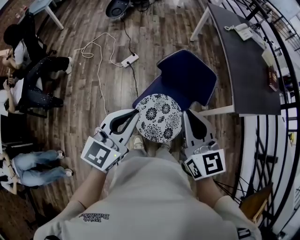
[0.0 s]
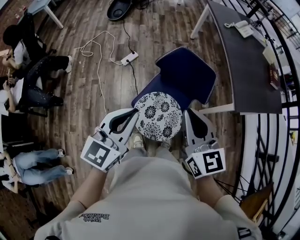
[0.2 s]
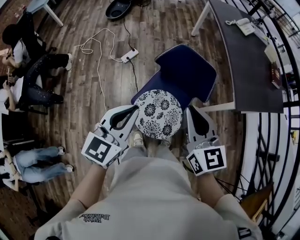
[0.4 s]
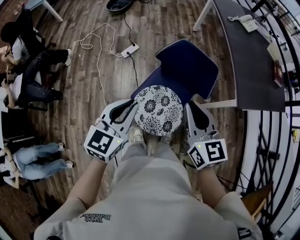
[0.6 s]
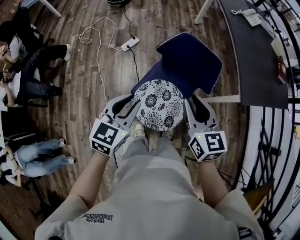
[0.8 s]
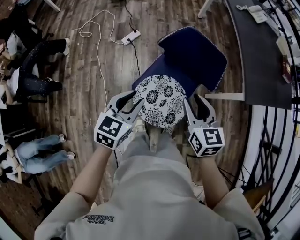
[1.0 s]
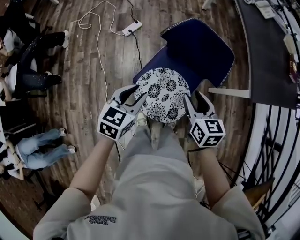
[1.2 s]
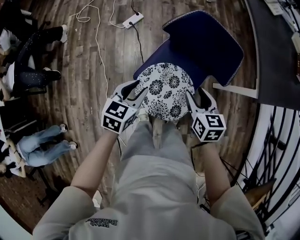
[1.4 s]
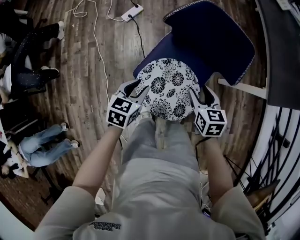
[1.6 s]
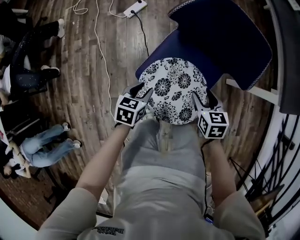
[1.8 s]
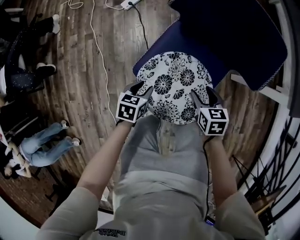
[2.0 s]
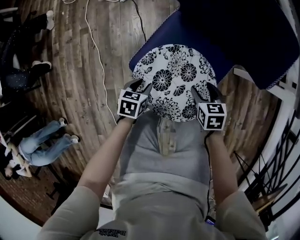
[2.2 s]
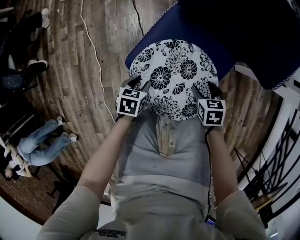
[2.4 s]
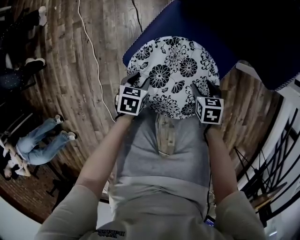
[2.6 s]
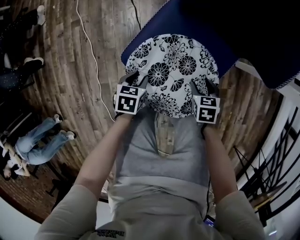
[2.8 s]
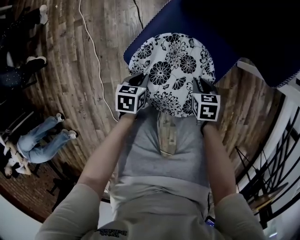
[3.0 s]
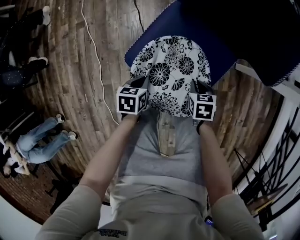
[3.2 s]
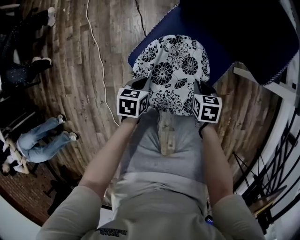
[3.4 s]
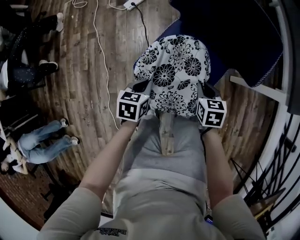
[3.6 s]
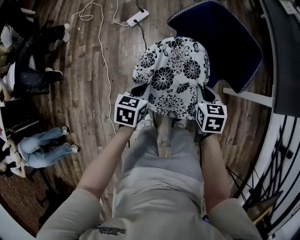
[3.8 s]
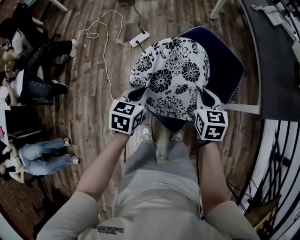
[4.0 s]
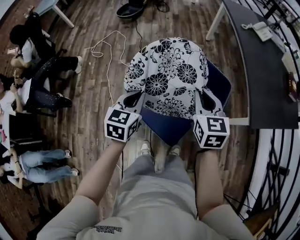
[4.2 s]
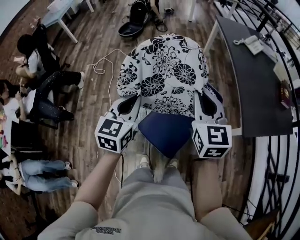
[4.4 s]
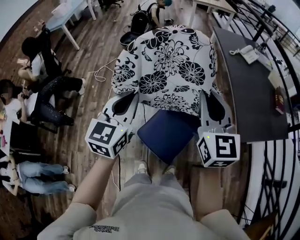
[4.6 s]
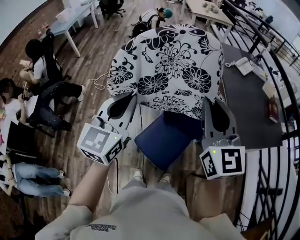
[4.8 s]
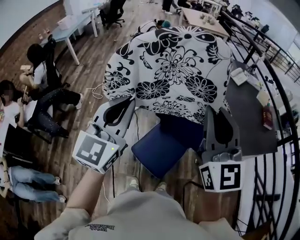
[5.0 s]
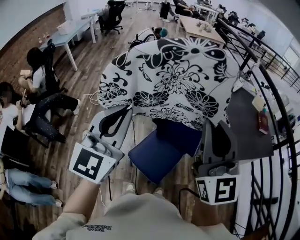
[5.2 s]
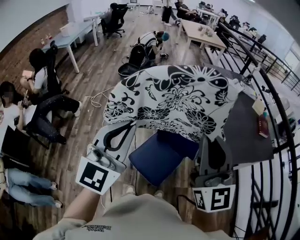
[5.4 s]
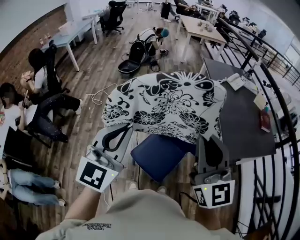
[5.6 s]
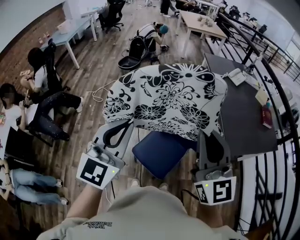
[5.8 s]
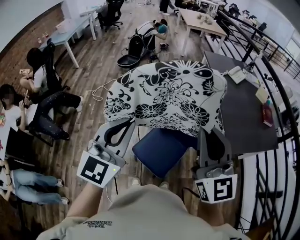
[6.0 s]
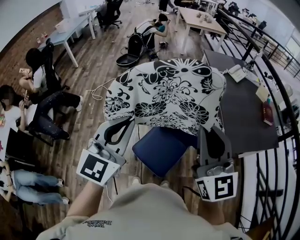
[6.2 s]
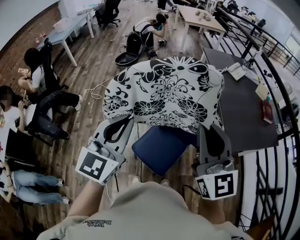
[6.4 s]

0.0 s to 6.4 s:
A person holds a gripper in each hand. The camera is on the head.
0.0 to 1.6 s: Both grippers travel together downward, some 40 cm. The left gripper tilts its fingers roughly 40 degrees downward, and opens its fingers, while the right gripper angles its fingers downward, by approximately 30 degrees, and opens up.
1.6 to 3.2 s: The grippers both shift downward by about 30 cm. The left gripper swivels approximately 20 degrees, and closes, while the right gripper swivels about 20 degrees, and closes its fingers.
3.2 to 4.8 s: Both grippers travel together upward, about 50 cm. The left gripper turns by approximately 30 degrees. The right gripper angles its fingers upward, by roughly 40 degrees.
4.8 to 6.4 s: The grippers stay close to where they were, moving slightly.

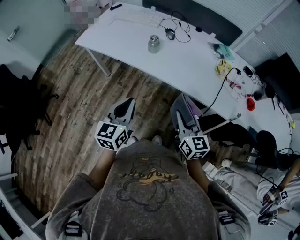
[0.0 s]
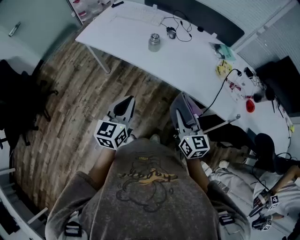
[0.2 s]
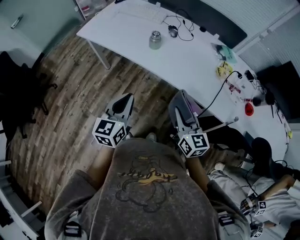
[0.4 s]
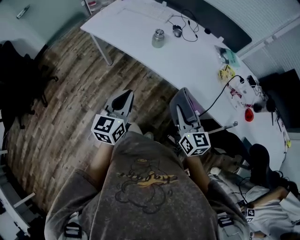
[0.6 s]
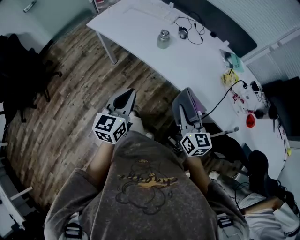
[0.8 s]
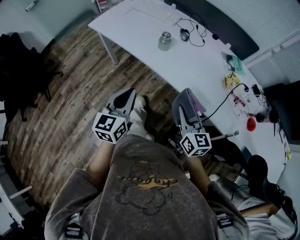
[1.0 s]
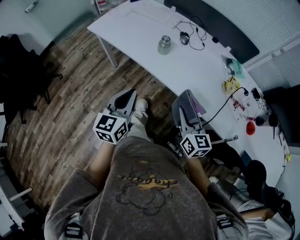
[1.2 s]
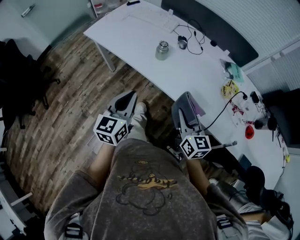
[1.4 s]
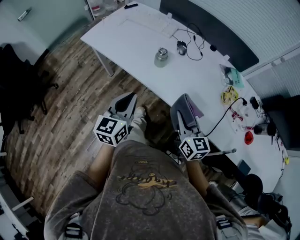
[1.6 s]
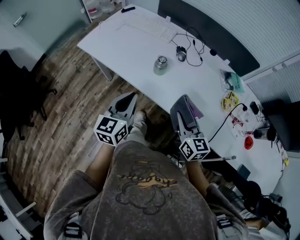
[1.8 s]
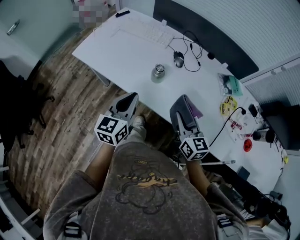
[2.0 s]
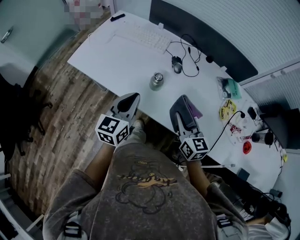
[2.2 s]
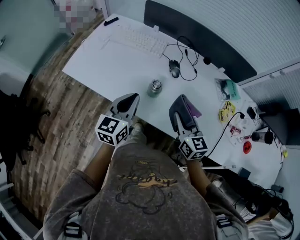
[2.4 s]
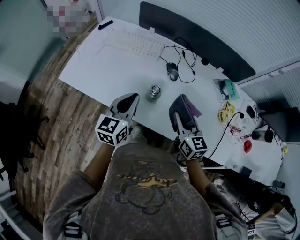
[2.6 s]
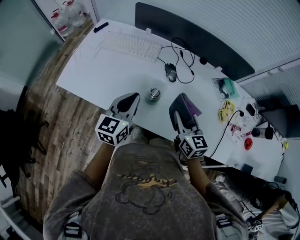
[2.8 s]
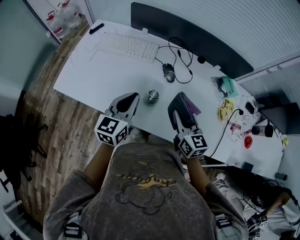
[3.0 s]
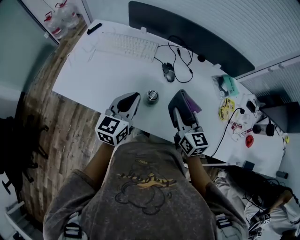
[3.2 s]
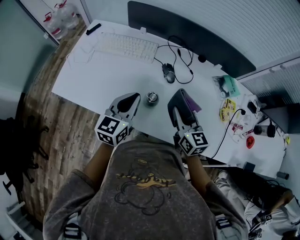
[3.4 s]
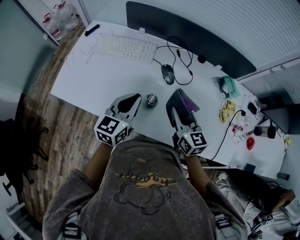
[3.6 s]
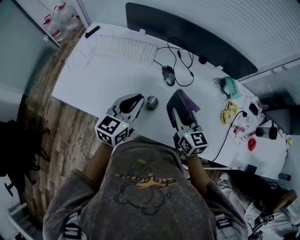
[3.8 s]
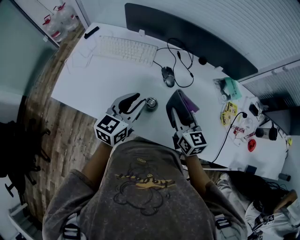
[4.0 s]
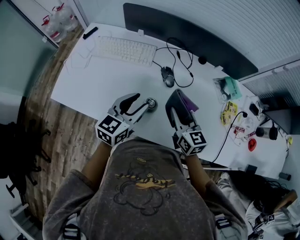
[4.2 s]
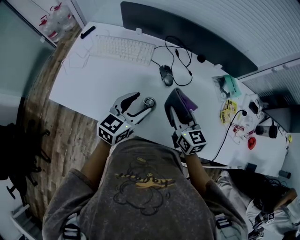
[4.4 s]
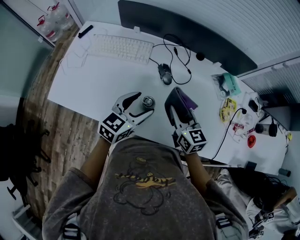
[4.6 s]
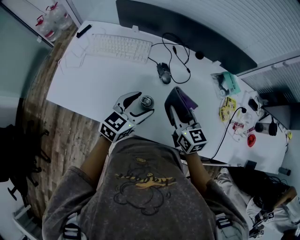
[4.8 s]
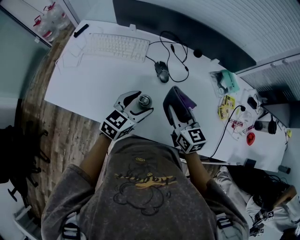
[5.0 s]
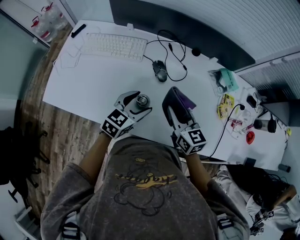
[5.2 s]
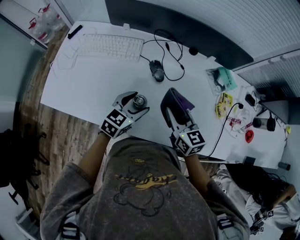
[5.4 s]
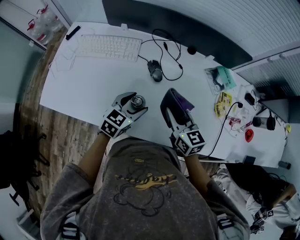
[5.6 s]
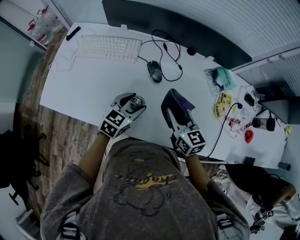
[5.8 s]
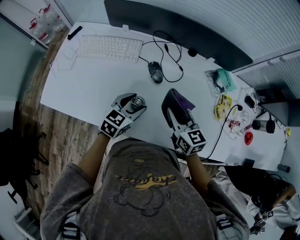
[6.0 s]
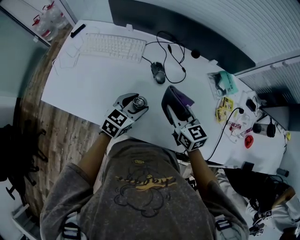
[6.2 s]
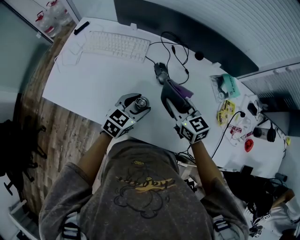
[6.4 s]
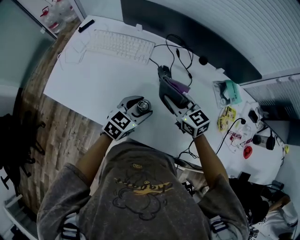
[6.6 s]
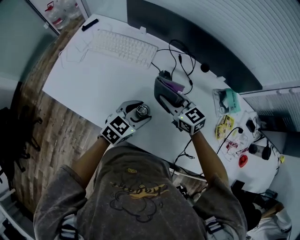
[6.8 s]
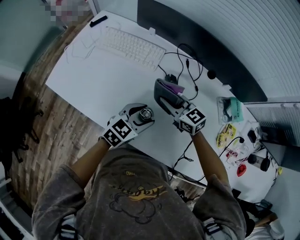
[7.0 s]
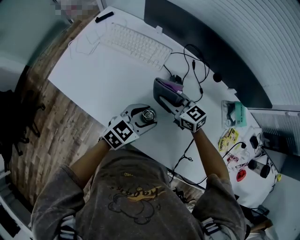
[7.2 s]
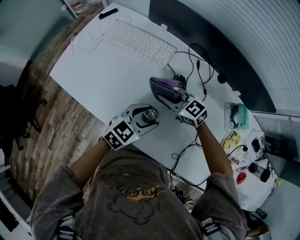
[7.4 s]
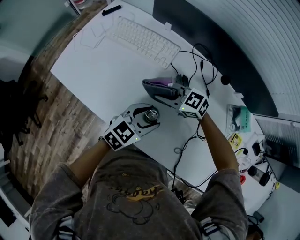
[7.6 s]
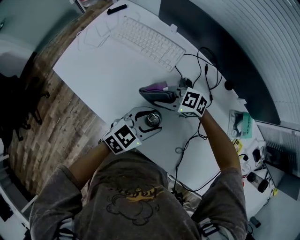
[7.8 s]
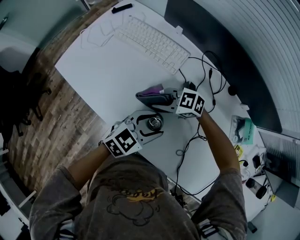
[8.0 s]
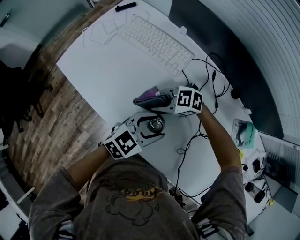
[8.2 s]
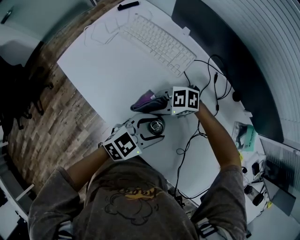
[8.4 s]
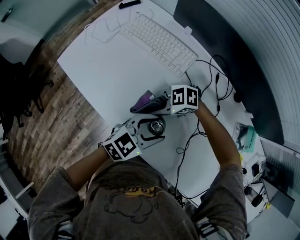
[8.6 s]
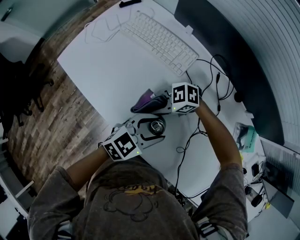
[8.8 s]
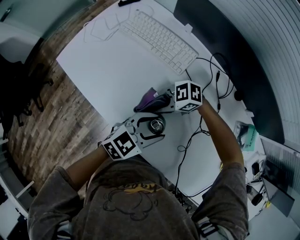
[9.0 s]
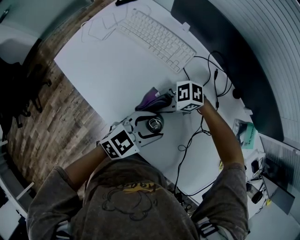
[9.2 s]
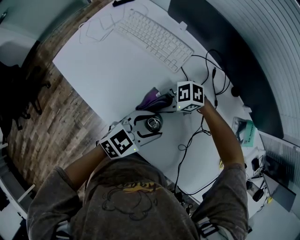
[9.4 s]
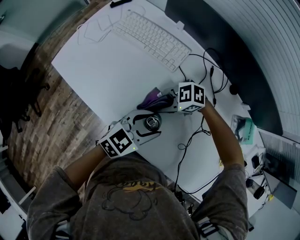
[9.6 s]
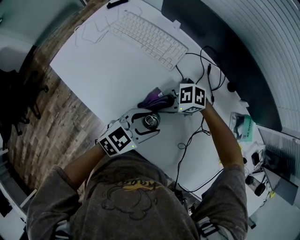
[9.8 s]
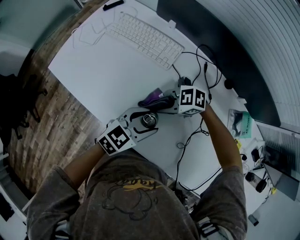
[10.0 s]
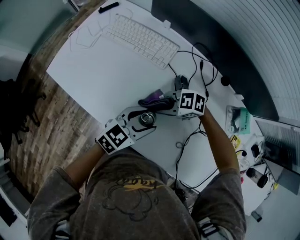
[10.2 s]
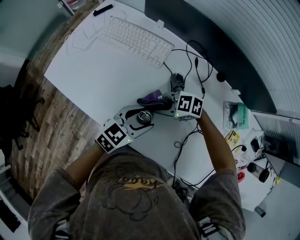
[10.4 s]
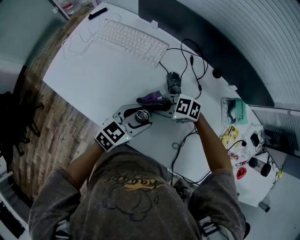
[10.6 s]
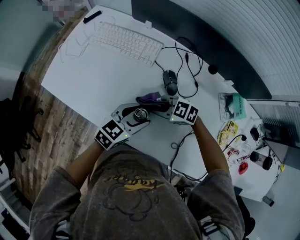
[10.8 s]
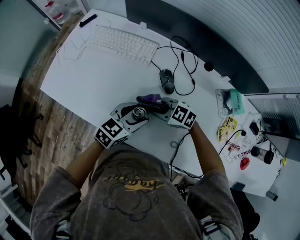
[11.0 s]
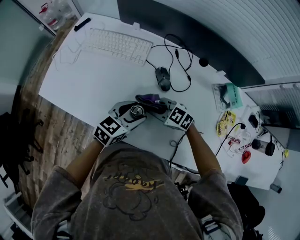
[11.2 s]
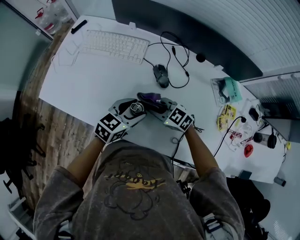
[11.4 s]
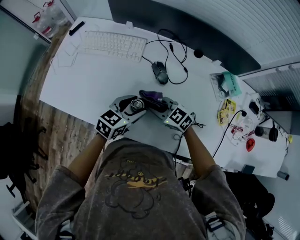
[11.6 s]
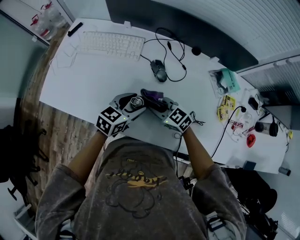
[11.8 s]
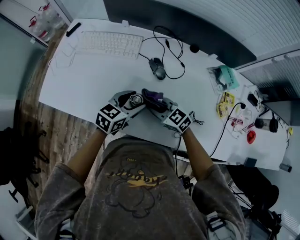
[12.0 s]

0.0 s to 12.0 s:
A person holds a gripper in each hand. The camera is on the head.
0.0 to 1.6 s: Both grippers move forward, some 15 cm.
1.6 to 3.0 s: The two grippers go roughly 25 cm forward.
3.0 to 4.4 s: The right gripper goes approximately 5 cm forward; the left gripper is displaced to the right by roughly 5 cm, and opens.
4.4 to 6.0 s: The left gripper travels downward by approximately 10 cm.
6.0 to 7.6 s: The right gripper moves about 20 cm, and rotates some 70 degrees.
7.6 to 9.0 s: The right gripper moves roughly 10 cm, and turns by about 40 degrees.
9.0 to 10.4 s: The right gripper changes place by approximately 5 cm, and swivels about 20 degrees.
10.4 to 12.0 s: The right gripper moves approximately 5 cm, and turns by approximately 50 degrees.

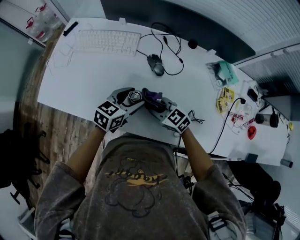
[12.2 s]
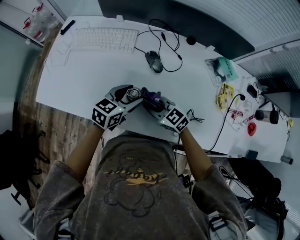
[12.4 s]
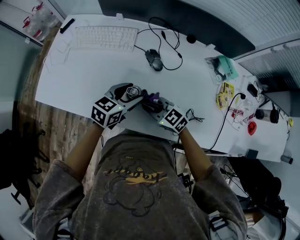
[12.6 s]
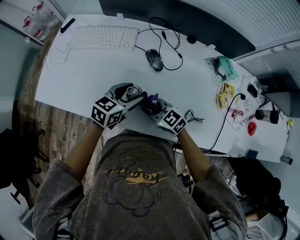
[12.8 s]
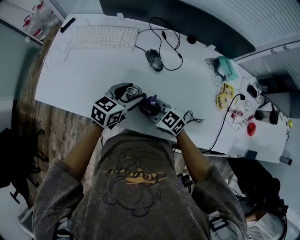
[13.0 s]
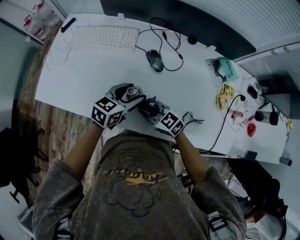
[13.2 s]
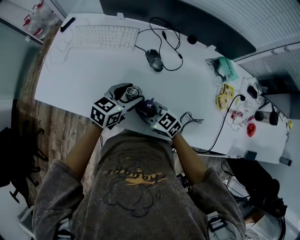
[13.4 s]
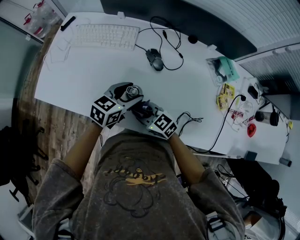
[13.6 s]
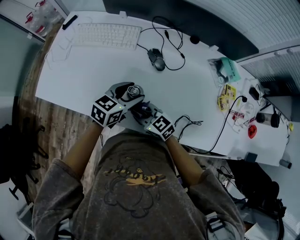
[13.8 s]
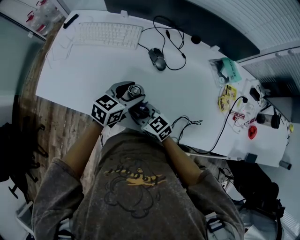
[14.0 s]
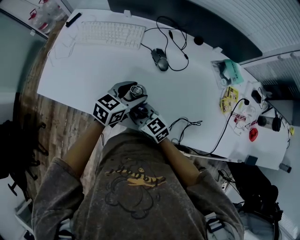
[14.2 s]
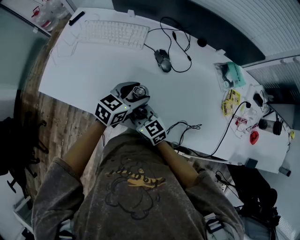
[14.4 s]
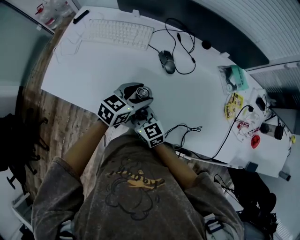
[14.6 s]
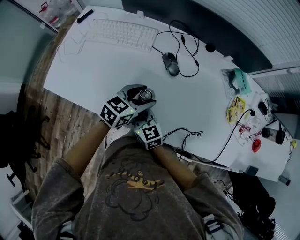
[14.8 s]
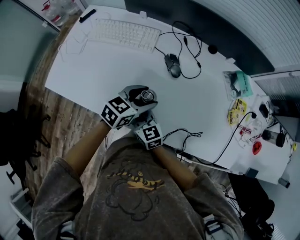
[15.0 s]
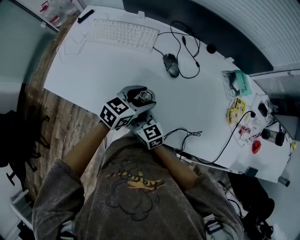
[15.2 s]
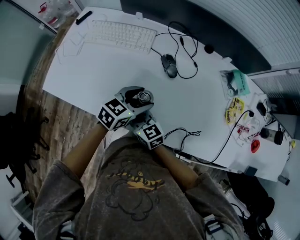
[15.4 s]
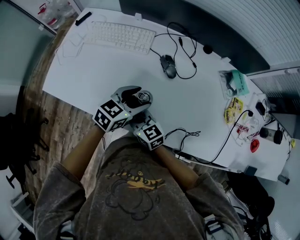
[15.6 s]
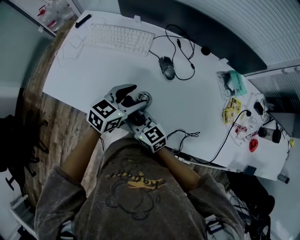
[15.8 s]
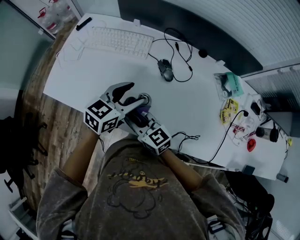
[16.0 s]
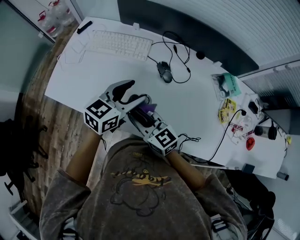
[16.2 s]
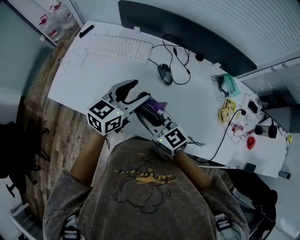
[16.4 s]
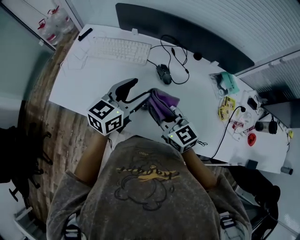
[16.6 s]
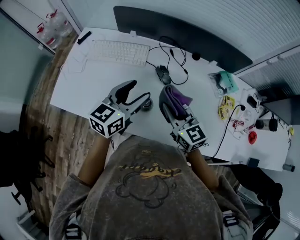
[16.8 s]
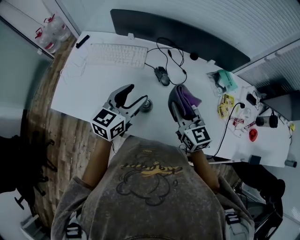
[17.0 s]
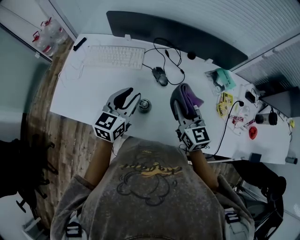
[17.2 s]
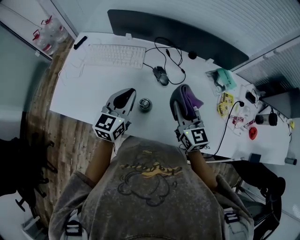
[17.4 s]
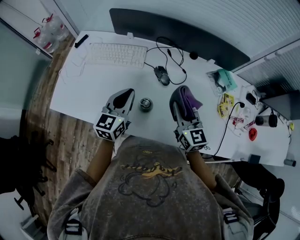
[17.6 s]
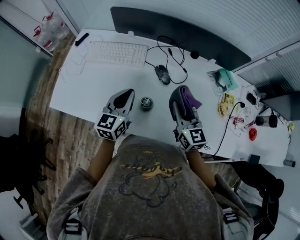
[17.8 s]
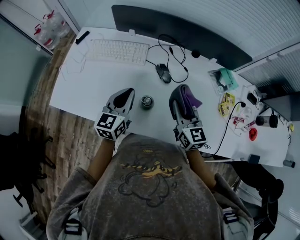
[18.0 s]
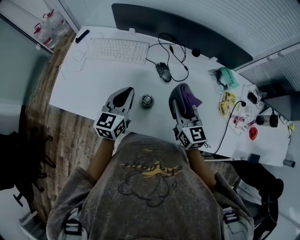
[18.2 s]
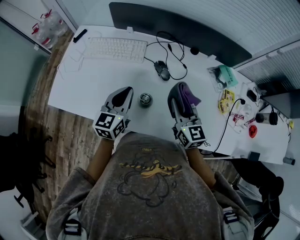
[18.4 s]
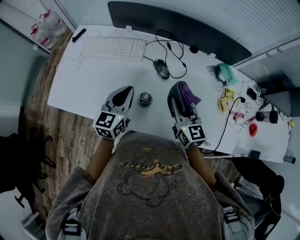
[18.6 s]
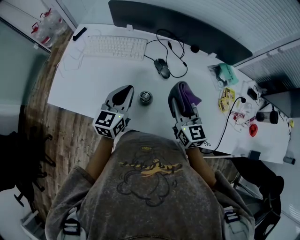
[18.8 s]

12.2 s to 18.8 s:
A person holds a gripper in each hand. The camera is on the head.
12.2 to 13.8 s: The right gripper moves to the left, some 5 cm.
13.8 to 15.4 s: The right gripper heads to the left, covering some 5 cm.
15.4 to 17.2 s: The right gripper heads to the right and upward, covering some 25 cm, and rotates some 30 degrees; the left gripper travels upward by roughly 10 cm, turns by approximately 30 degrees, and closes up.
17.2 to 18.8 s: The left gripper closes.
